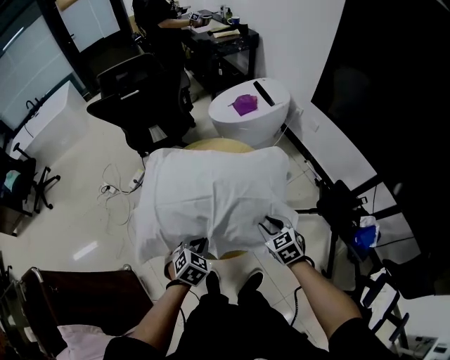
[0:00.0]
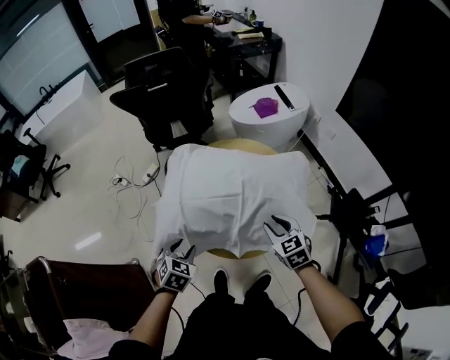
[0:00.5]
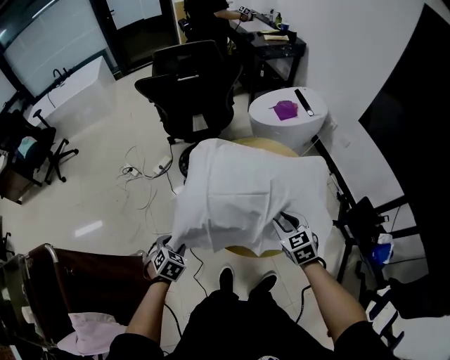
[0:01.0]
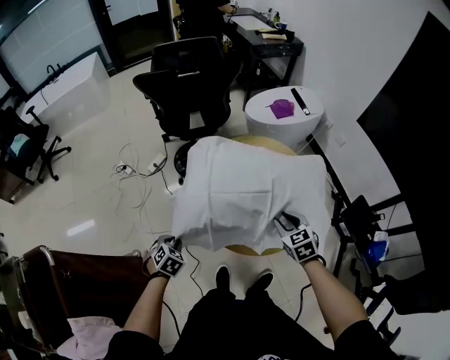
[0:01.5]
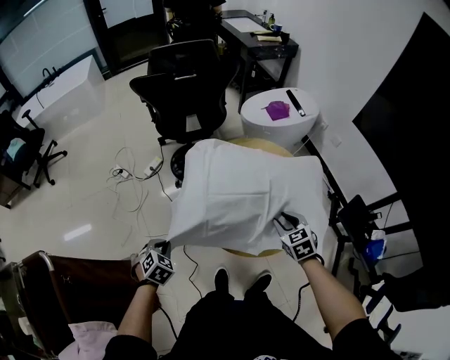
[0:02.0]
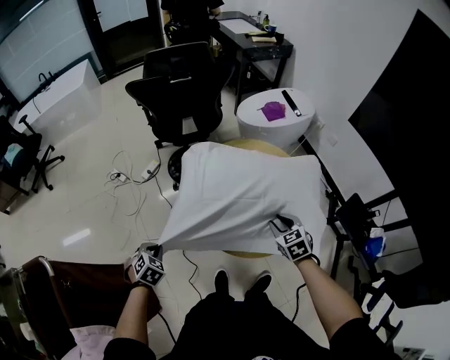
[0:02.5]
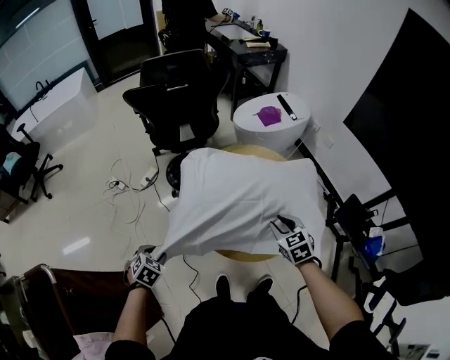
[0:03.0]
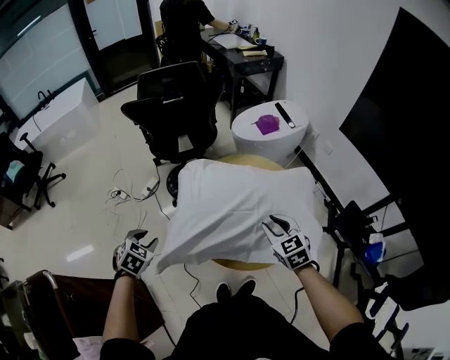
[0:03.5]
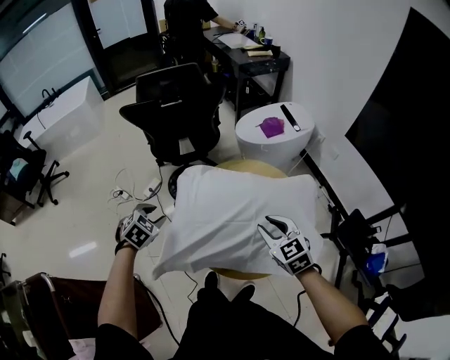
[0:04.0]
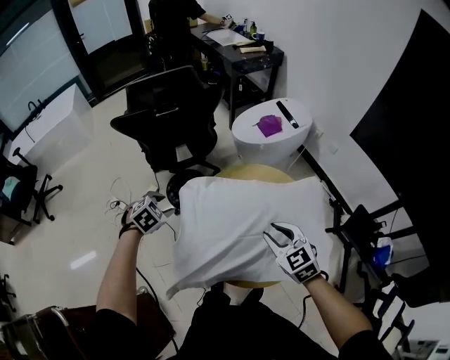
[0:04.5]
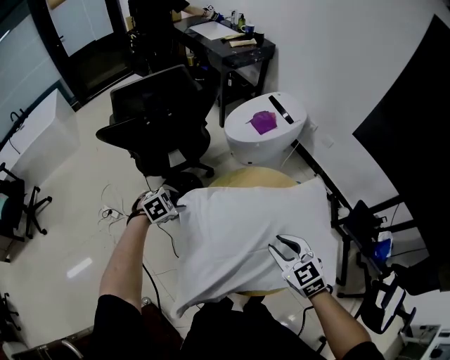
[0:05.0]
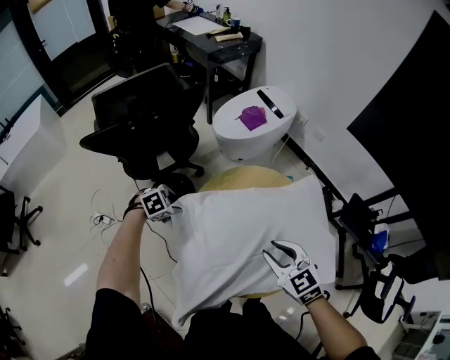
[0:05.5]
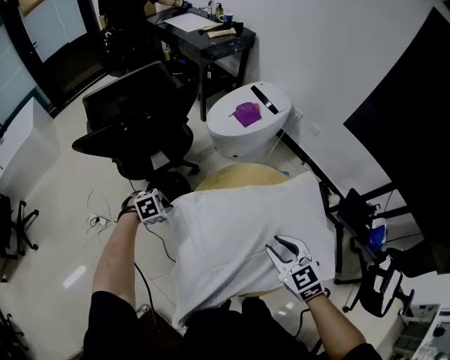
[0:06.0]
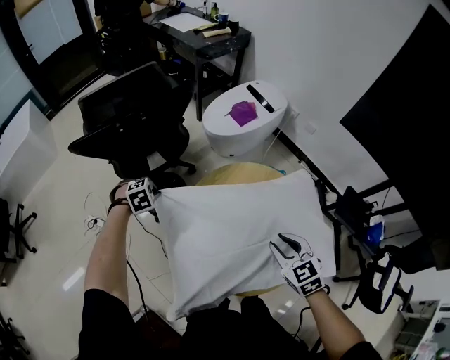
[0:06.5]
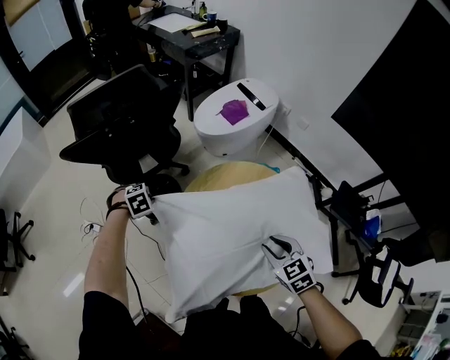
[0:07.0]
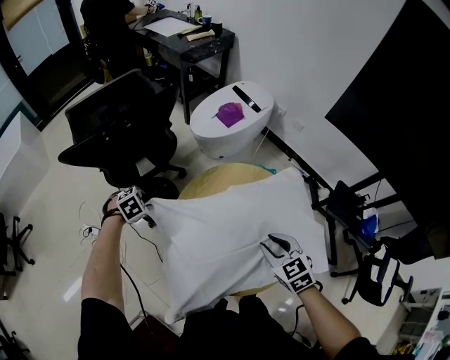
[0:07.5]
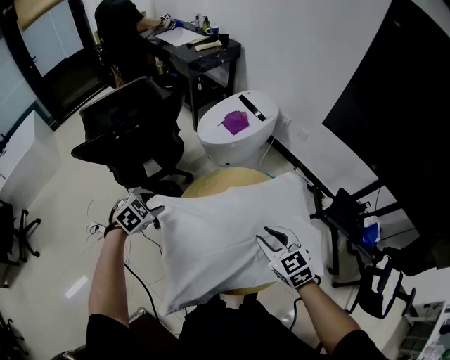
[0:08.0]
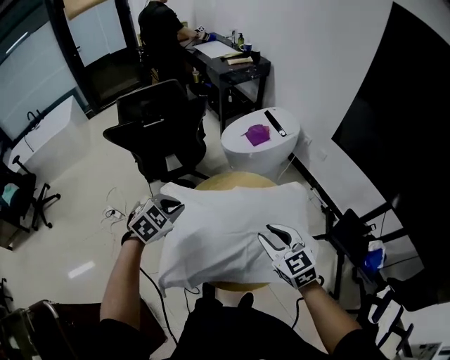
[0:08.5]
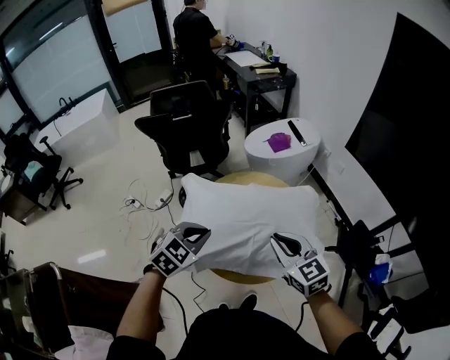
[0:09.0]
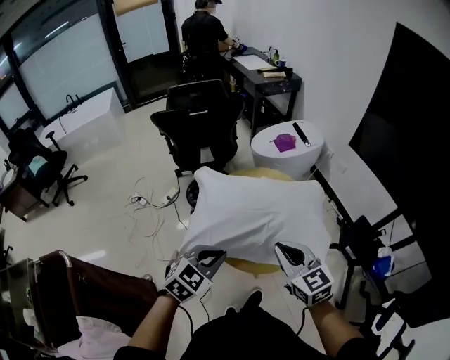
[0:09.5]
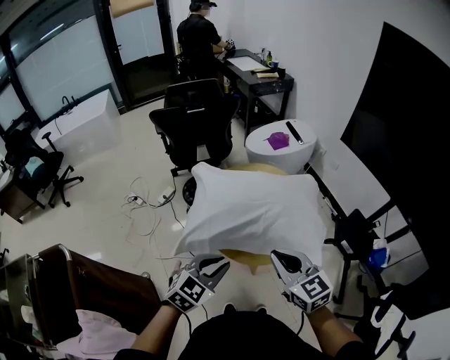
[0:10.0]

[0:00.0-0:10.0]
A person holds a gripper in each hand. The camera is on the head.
0.0 to 2.0 s: The left gripper goes some 30 cm to the left, and opens and closes again. The right gripper moves to the left, approximately 10 cm.
2.0 to 4.0 s: The right gripper moves upward and forward, about 10 cm. Meanwhile the left gripper travels forward and upward by about 20 cm, and opens up.
4.0 to 6.0 s: The left gripper moves about 25 cm, changes its angle by some 40 degrees, and closes its fingers. The right gripper shifts by roughly 5 cm.
6.0 to 8.0 s: The left gripper moves upward, some 15 cm, rotates some 20 degrees, and opens.
8.0 to 10.0 s: The left gripper is displaced backward by some 40 cm, swivels about 30 degrees, and closes up. Meanwhile the right gripper is displaced backward and upward by roughly 30 cm, rotates roughly 20 degrees, and closes up.

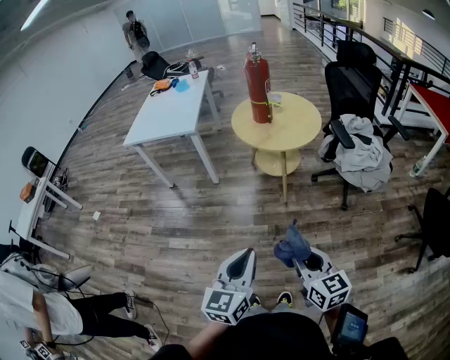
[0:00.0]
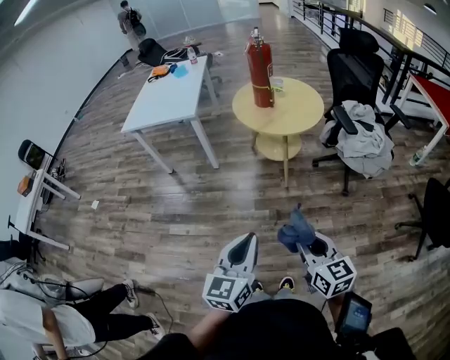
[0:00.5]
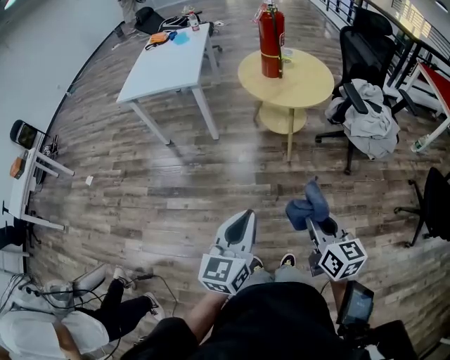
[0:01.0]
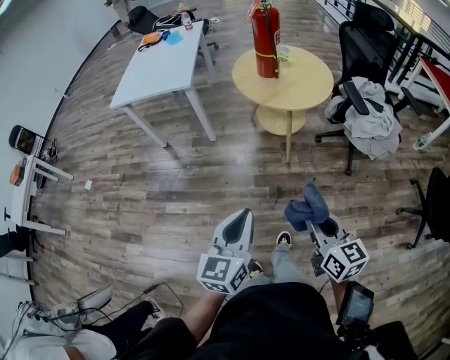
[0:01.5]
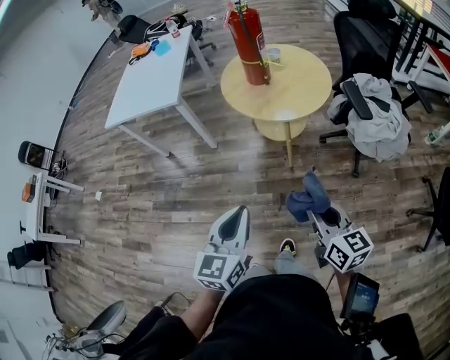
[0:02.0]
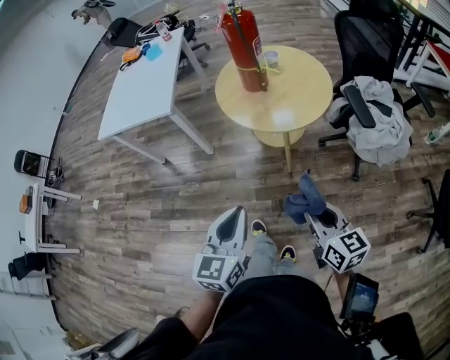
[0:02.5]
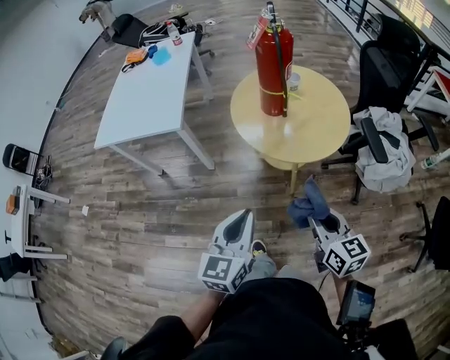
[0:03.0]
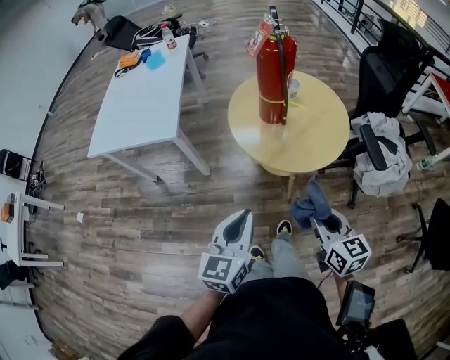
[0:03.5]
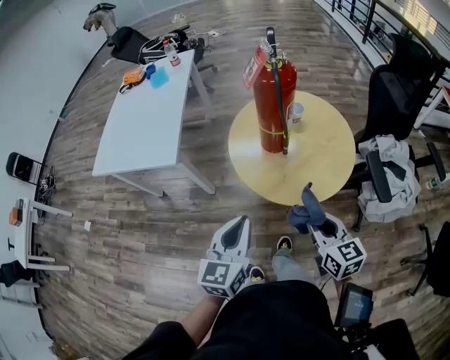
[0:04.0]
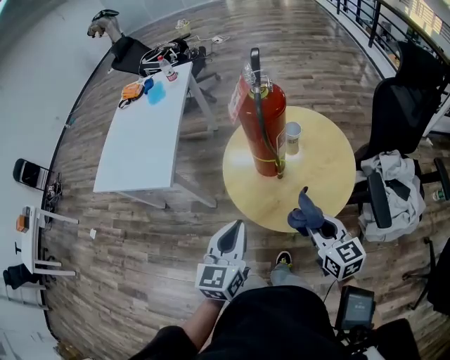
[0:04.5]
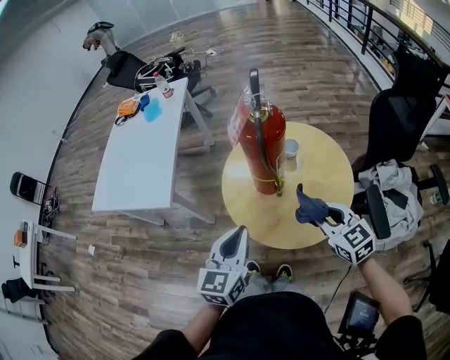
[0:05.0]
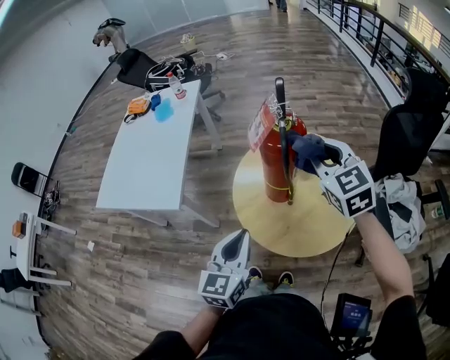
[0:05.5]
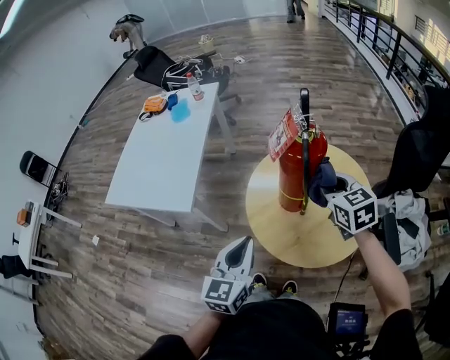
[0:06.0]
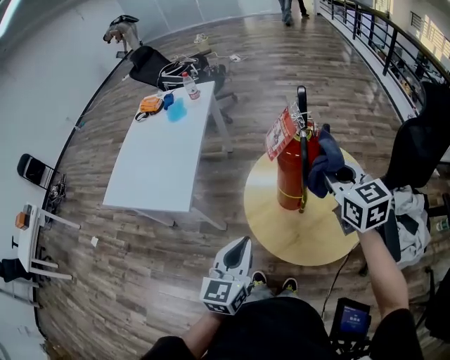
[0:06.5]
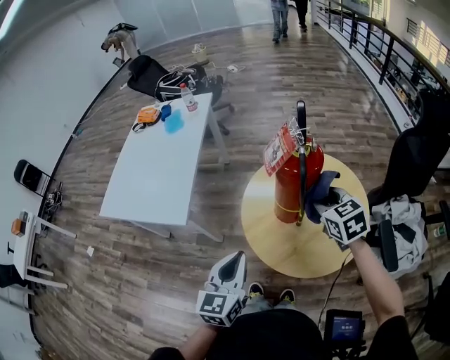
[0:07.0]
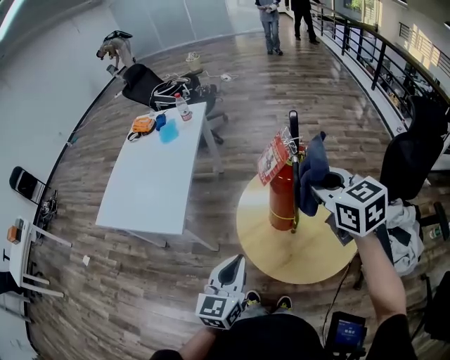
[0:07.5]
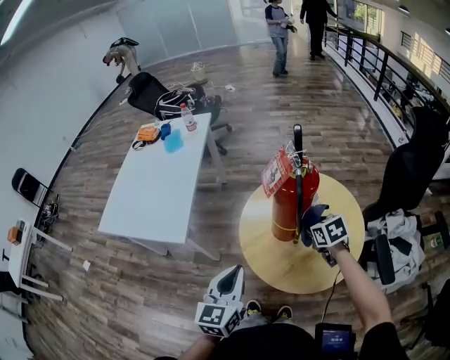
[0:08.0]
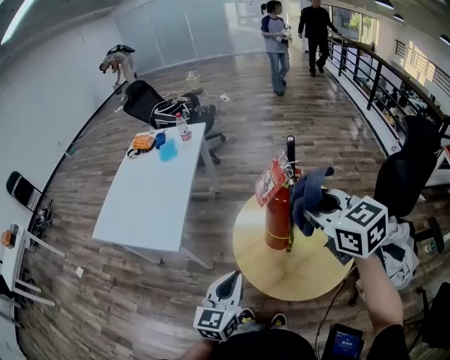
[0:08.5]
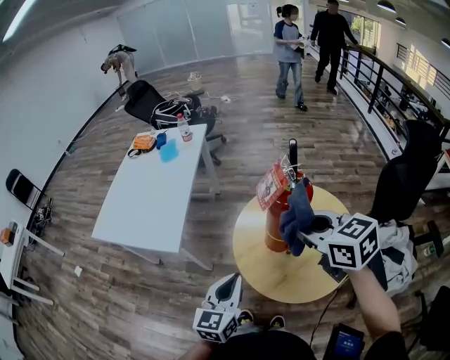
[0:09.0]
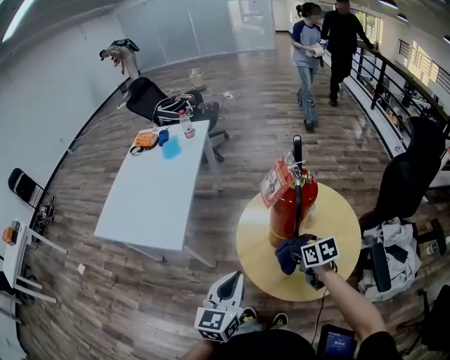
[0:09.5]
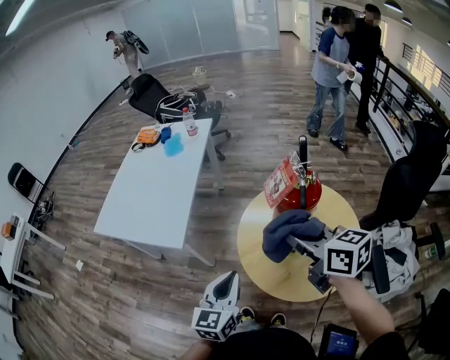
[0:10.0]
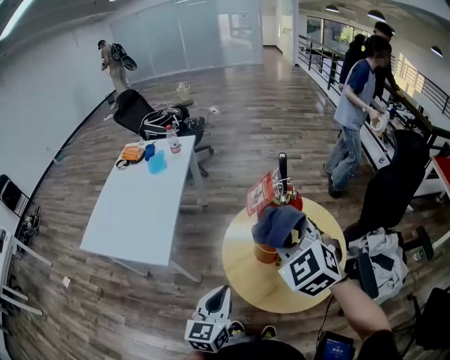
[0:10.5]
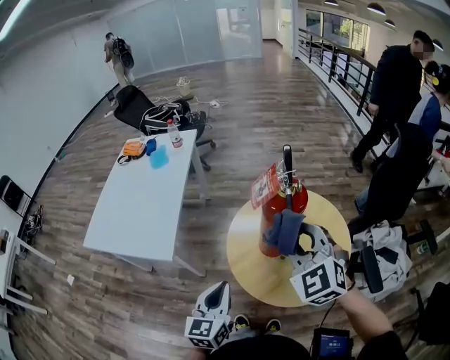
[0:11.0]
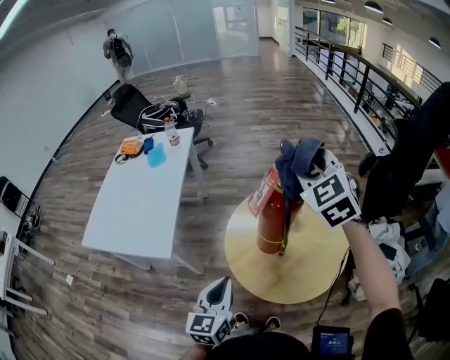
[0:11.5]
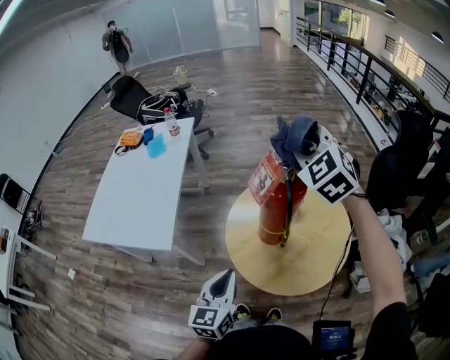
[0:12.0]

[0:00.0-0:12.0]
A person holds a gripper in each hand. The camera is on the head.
0.0 to 2.0 s: Both grippers move forward, roughly 20 cm.
2.0 to 4.0 s: Both grippers travel together forward, roughly 35 cm.
4.0 to 6.0 s: The right gripper goes some 30 cm forward. The left gripper is displaced forward by approximately 15 cm.
6.0 to 8.0 s: The right gripper swings up and down, approximately 25 cm each way, with 3 reversals, and changes its angle by roughly 20 degrees.
8.0 to 10.0 s: The right gripper swings up and down, roughly 30 cm each way, with 2 reversals, and points its fingers roughly 30 degrees further upward.
10.0 to 12.0 s: The right gripper is displaced forward and upward by about 20 cm, and rolls counterclockwise, seen from behind, by about 60 degrees.

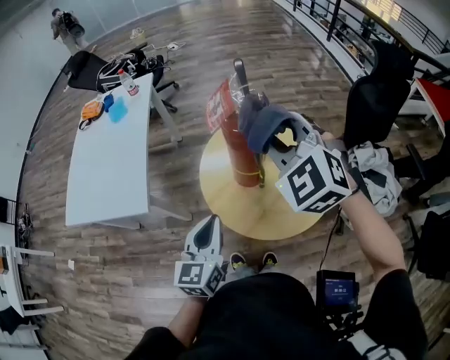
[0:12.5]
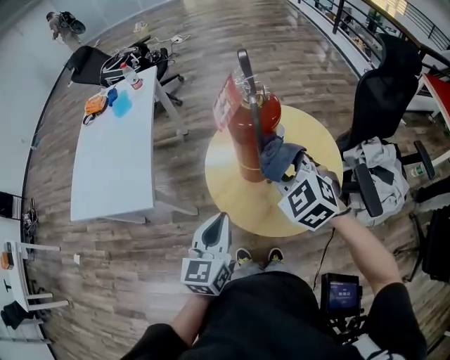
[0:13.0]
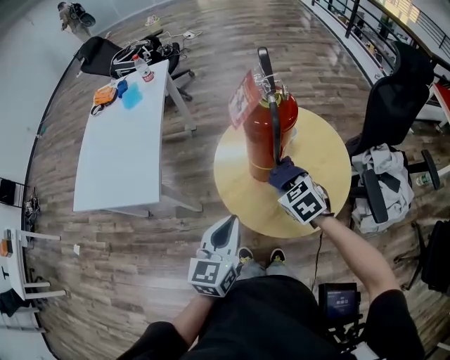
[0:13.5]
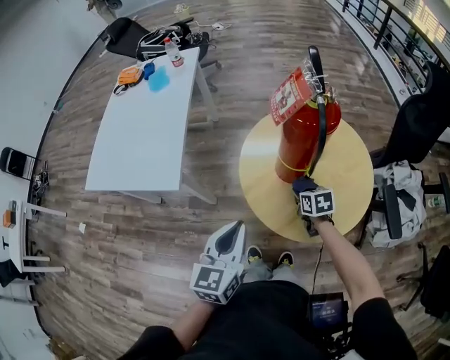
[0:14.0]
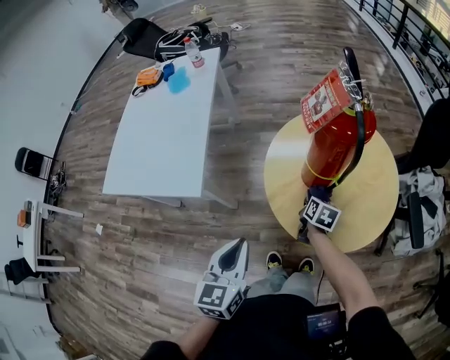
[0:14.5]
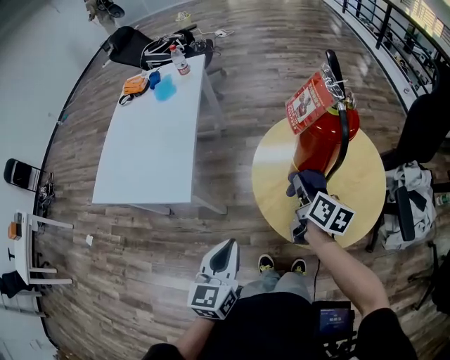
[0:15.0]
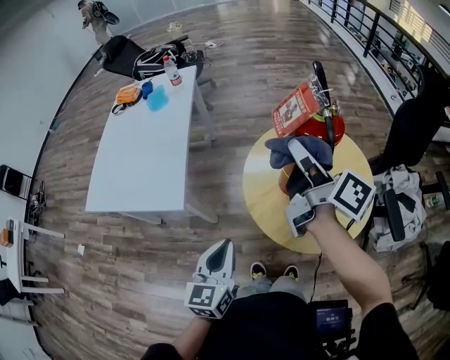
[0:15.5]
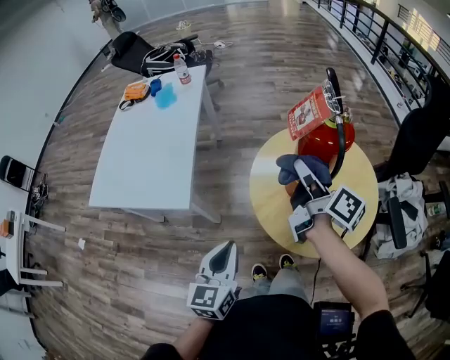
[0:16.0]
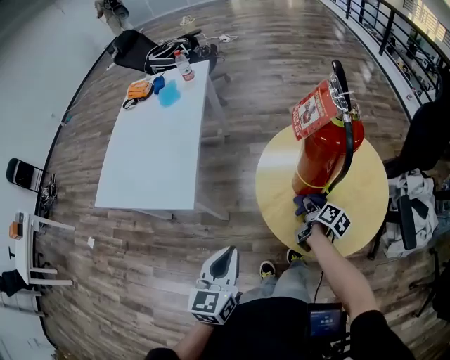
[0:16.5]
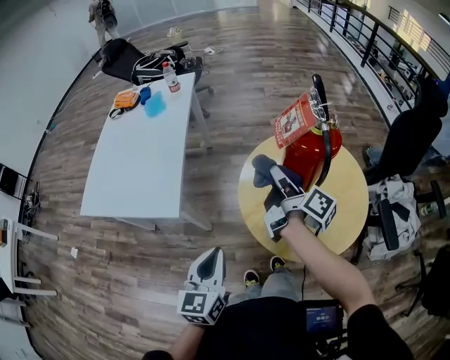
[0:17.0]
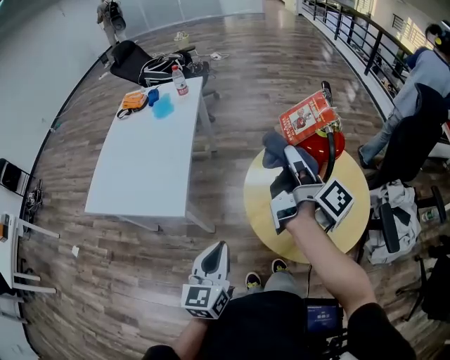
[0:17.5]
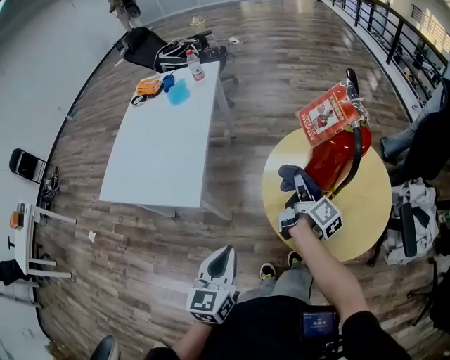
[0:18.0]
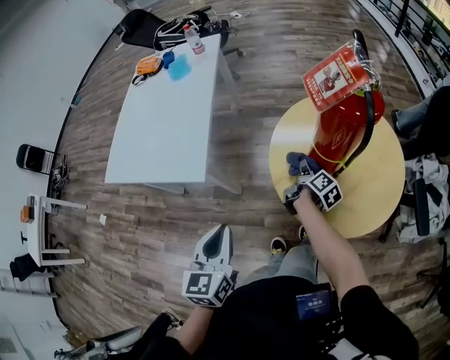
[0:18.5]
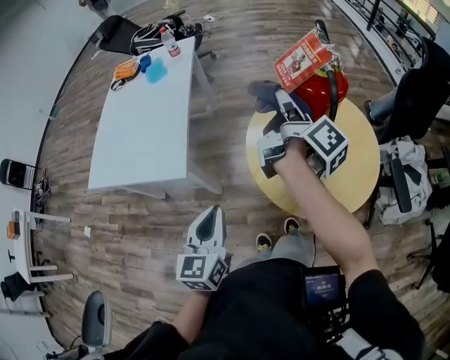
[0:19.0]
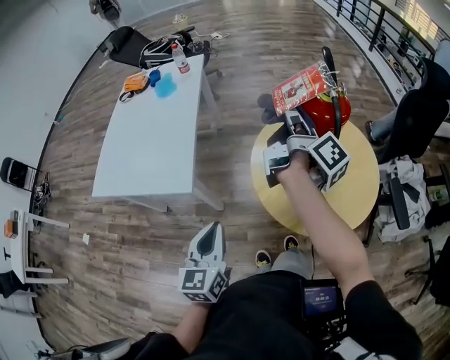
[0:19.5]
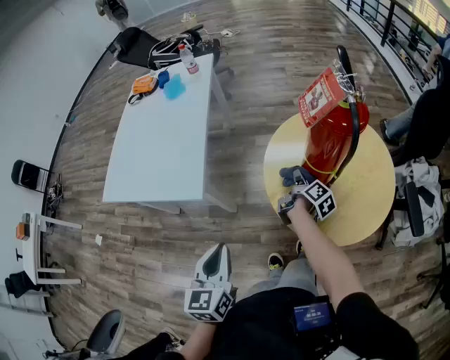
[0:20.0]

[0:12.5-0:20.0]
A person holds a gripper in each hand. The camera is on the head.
12.5 to 14.5 s: The right gripper goes about 40 cm downward, and rotates around the line of its fingers by about 90 degrees, clockwise from behind; the left gripper goes about 10 cm to the left and downward.
14.5 to 16.5 s: The right gripper moves about 35 cm upward and comes back, and changes its angle by about 30 degrees.
16.5 to 18.0 s: The right gripper shifts roughly 15 cm upward and to the left, and rotates about 30 degrees.
18.0 to 20.0 s: The right gripper swings up and down, about 35 cm each way, with 2 reversals.
